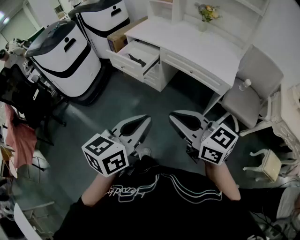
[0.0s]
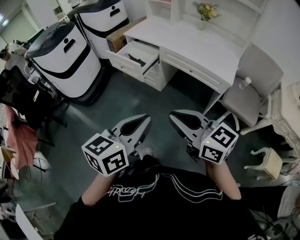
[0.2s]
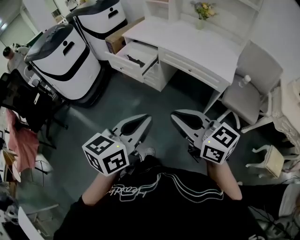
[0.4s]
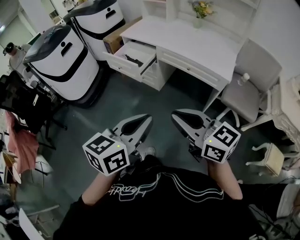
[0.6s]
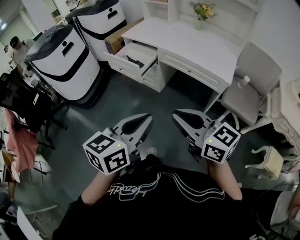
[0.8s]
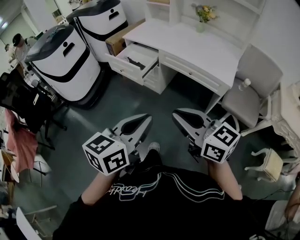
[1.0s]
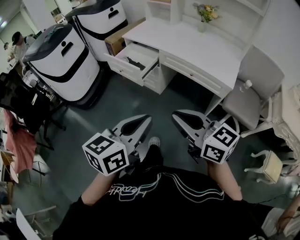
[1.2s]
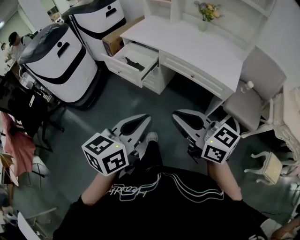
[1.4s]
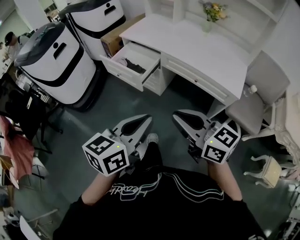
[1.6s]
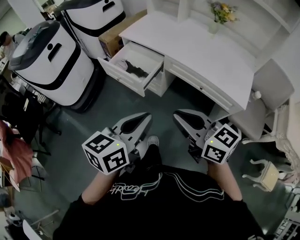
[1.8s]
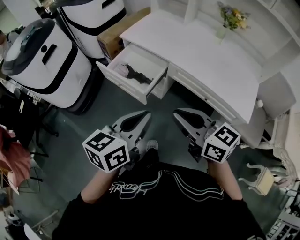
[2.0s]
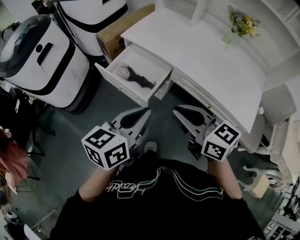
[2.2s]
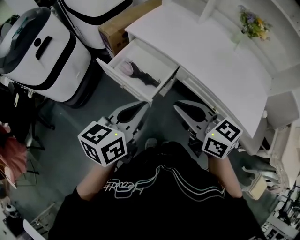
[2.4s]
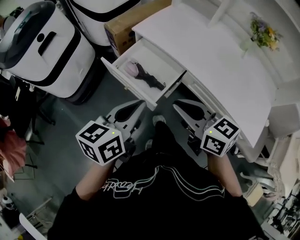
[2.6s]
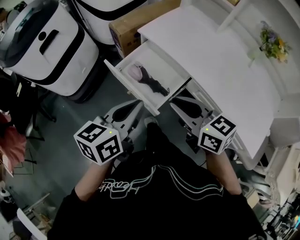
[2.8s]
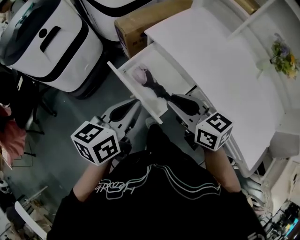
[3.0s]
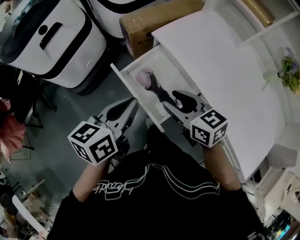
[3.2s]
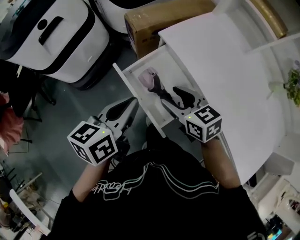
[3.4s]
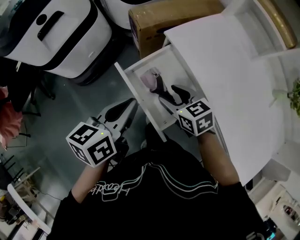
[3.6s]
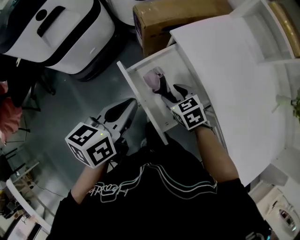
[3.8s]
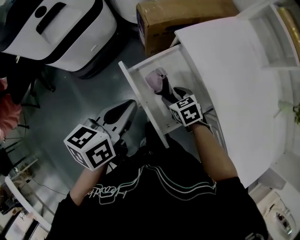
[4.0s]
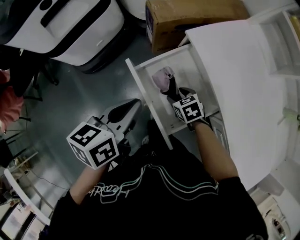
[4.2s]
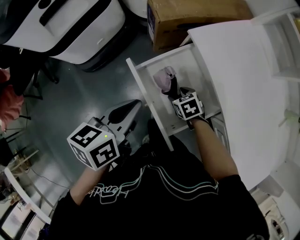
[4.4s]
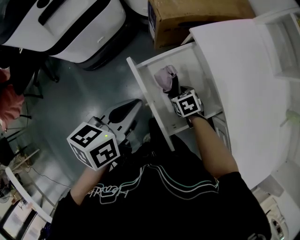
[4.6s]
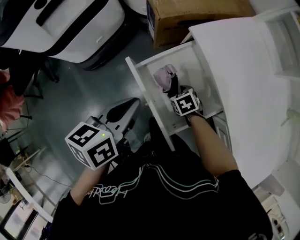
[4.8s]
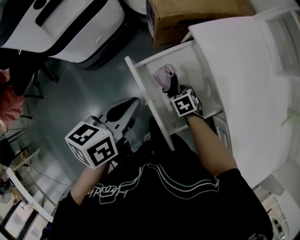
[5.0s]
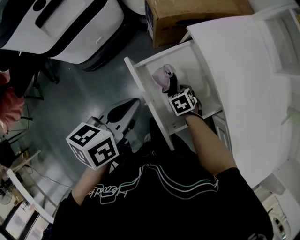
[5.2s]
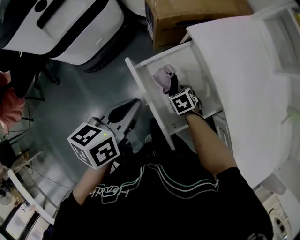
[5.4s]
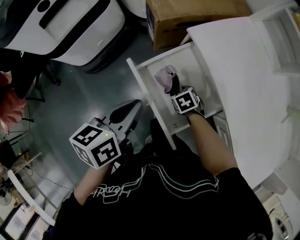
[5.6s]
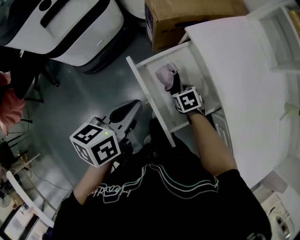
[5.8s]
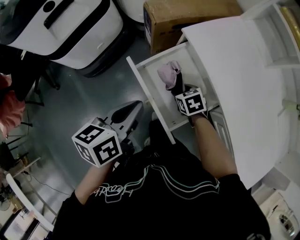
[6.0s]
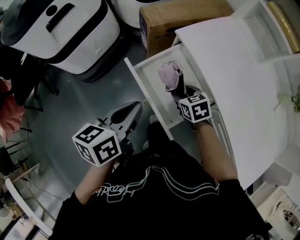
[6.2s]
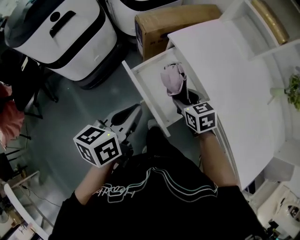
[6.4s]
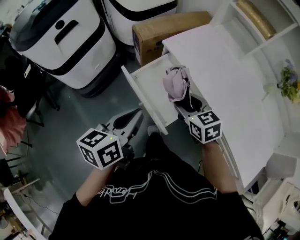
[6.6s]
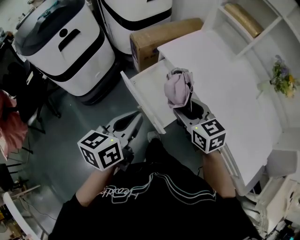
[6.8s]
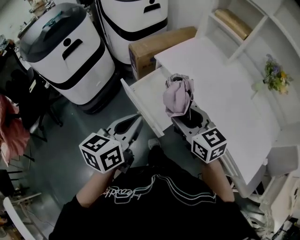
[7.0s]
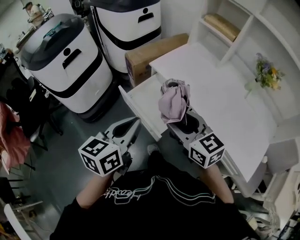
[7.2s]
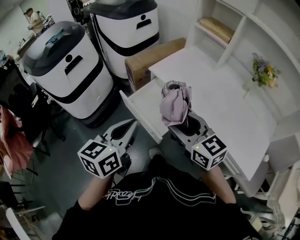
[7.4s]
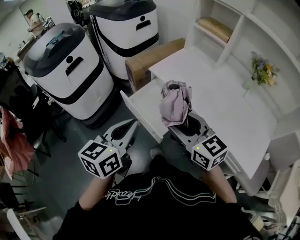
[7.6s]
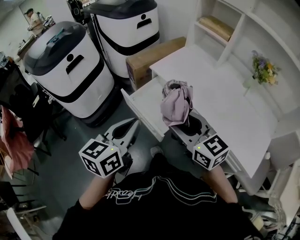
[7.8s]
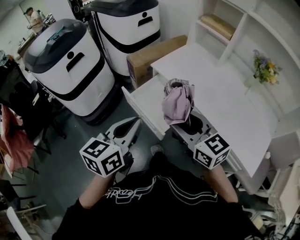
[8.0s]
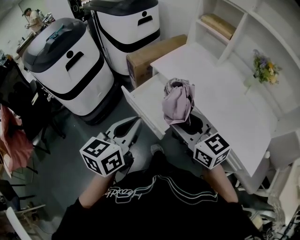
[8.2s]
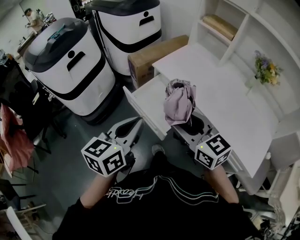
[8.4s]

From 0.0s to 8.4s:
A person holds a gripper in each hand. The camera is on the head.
From 0.0s to 1.4s: Both grippers travel together forward, some 10 cm.
From 1.4s to 2.8s: The pair of grippers is taken forward, some 50 cm.
From 2.8s to 4.2s: The right gripper heads downward and forward, covering roughly 40 cm, points its fingers some 40 degrees further downward, and opens up; the left gripper heads forward and downward, covering approximately 20 cm, and swivels some 20 degrees.
From 4.2s to 5.6s: The right gripper goes about 5 cm downward.
From 5.6s to 7.0s: The left gripper shifts about 25 cm backward and upward, and turns by approximately 20 degrees. The right gripper goes approximately 40 cm upward and backward, and angles its fingers upward, by roughly 50 degrees.
From 7.0s to 8.4s: The right gripper heads backward and upward, covering roughly 10 cm. The left gripper moves approximately 5 cm.

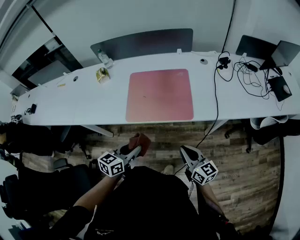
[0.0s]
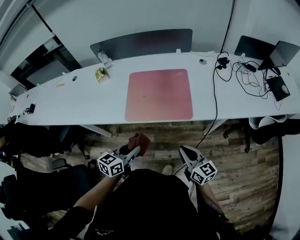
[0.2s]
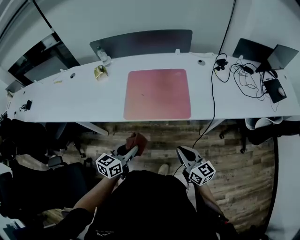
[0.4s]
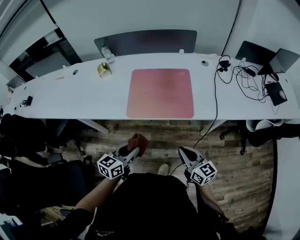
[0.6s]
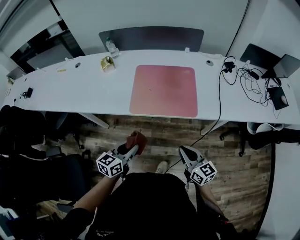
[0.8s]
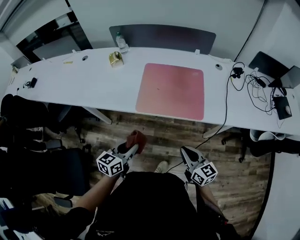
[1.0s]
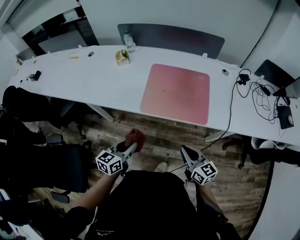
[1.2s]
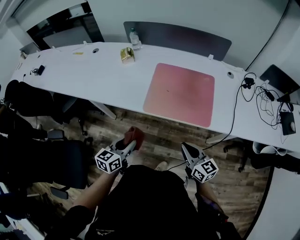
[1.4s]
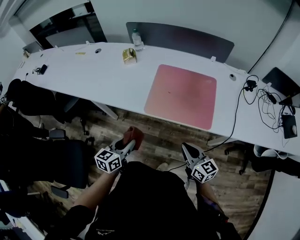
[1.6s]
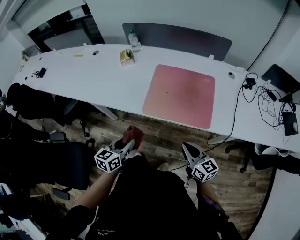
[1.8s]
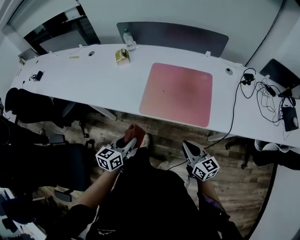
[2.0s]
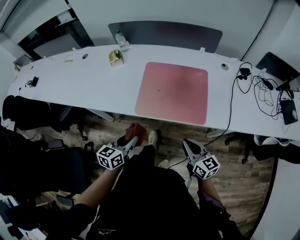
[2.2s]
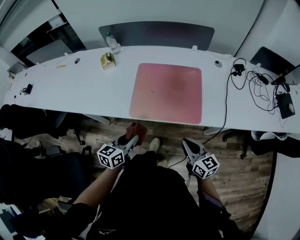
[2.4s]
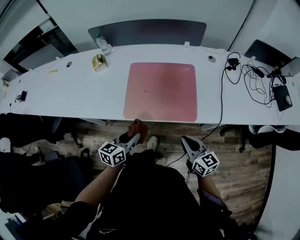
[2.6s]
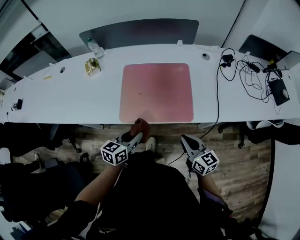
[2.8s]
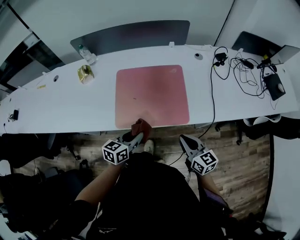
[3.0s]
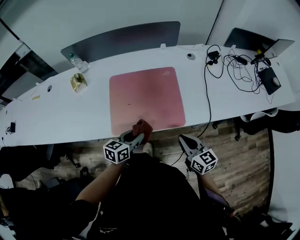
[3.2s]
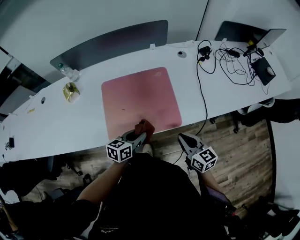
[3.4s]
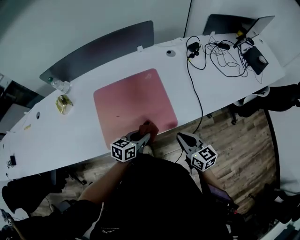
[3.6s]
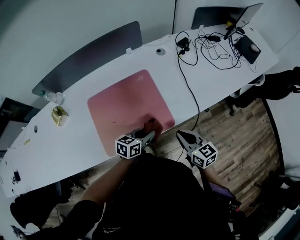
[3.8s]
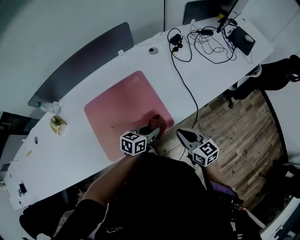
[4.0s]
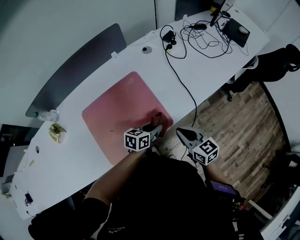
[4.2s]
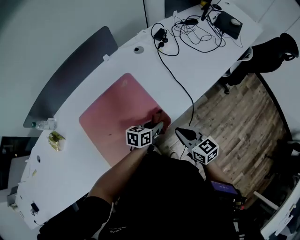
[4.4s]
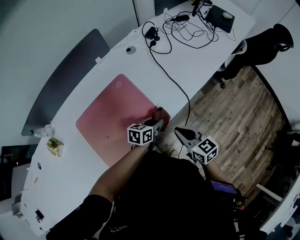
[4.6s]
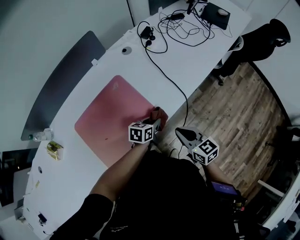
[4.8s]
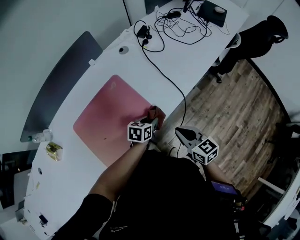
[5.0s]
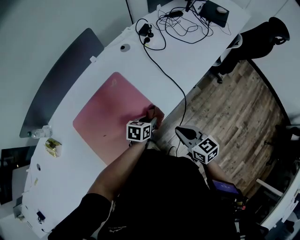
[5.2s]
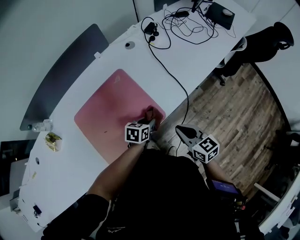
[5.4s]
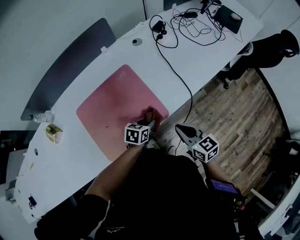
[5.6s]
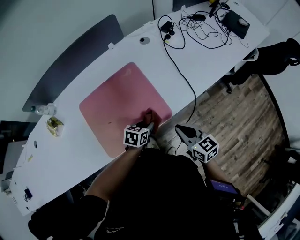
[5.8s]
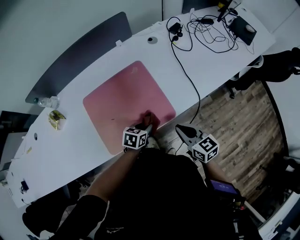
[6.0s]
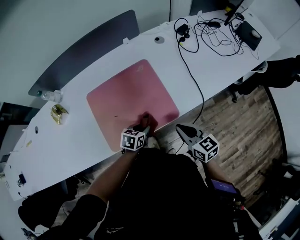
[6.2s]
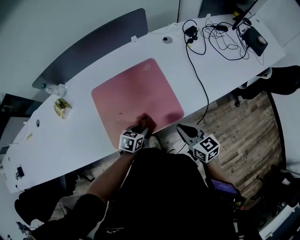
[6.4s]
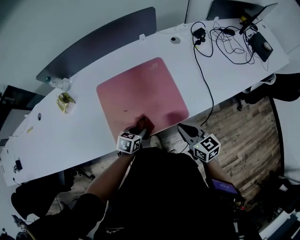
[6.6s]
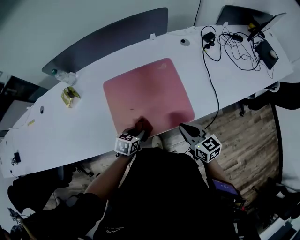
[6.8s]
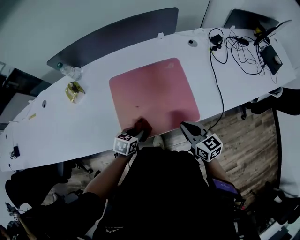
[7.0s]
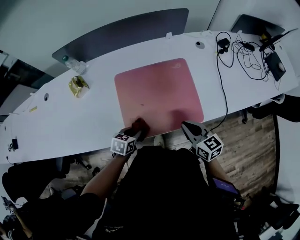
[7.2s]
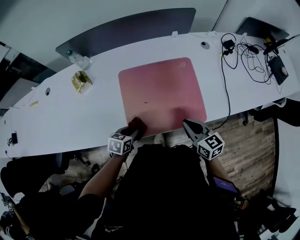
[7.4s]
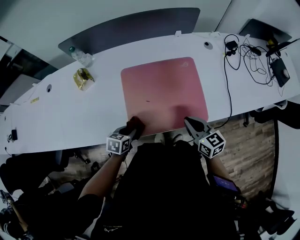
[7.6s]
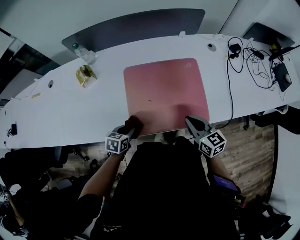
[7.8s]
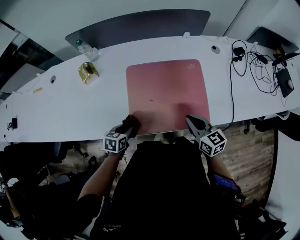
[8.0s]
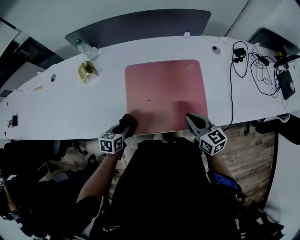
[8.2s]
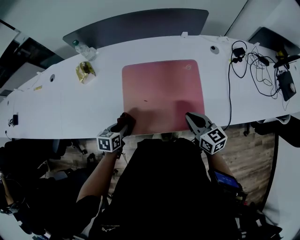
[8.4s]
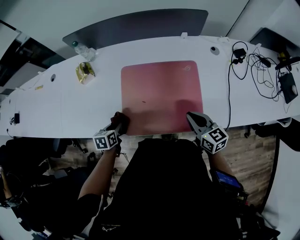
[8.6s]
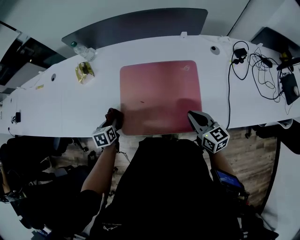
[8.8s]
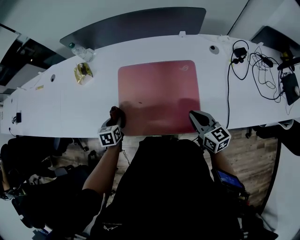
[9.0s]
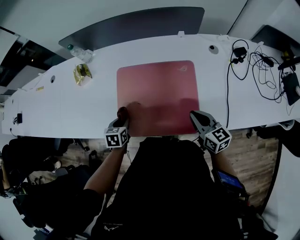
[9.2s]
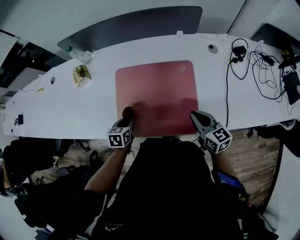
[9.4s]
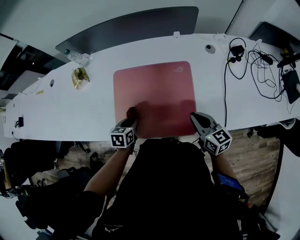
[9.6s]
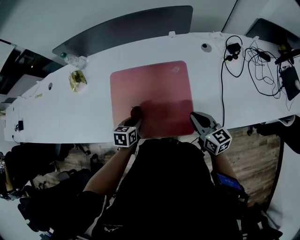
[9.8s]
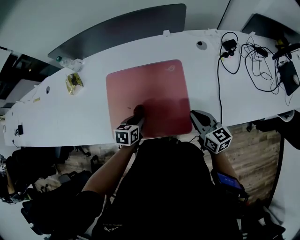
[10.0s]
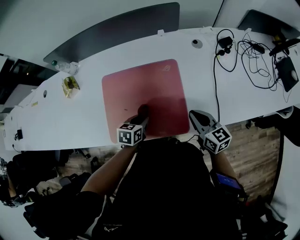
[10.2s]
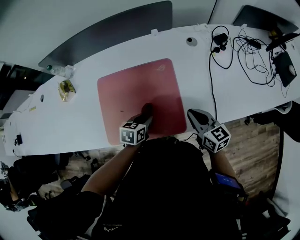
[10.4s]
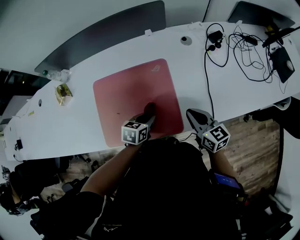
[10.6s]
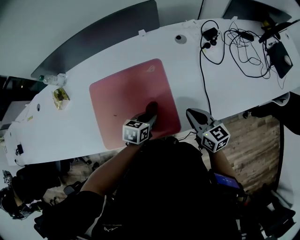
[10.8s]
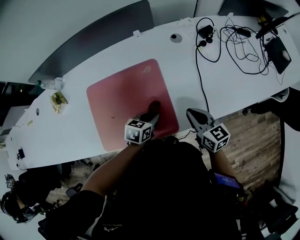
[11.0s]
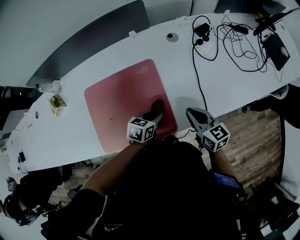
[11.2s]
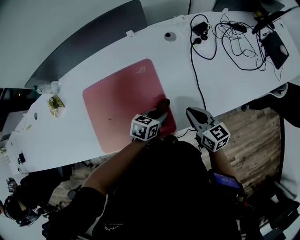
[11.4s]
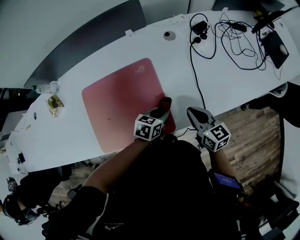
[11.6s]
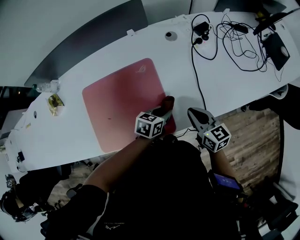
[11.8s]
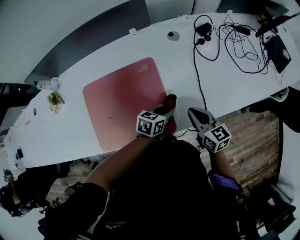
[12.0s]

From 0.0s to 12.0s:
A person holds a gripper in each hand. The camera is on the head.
From 0.0s to 1.6s: Both grippers travel together to the left, about 10 cm. The left gripper changes its angle by roughly 20 degrees.
From 1.6s to 3.0s: The right gripper travels to the right and forward by about 10 cm; the left gripper heads to the right and forward, covering about 20 cm, and changes its angle by about 20 degrees.
From 3.0s to 4.4s: The right gripper moves roughly 10 cm, and swivels approximately 20 degrees, while the left gripper moves about 25 cm, and turns by approximately 40 degrees.
From 4.4s to 6.0s: The left gripper travels to the left and backward by about 10 cm.
From 6.0s to 7.6s: The right gripper moves to the left, about 15 cm. The left gripper is displaced to the left by roughly 25 cm, and turns by roughly 20 degrees.
From 7.6s to 9.0s: The left gripper moves about 5 cm, and rotates about 30 degrees. The right gripper moves some 10 cm.
From 9.0s to 10.4s: The right gripper changes place by approximately 10 cm. The left gripper ends up approximately 25 cm from where it was, and changes its angle by approximately 30 degrees.
From 10.4s to 12.0s: The right gripper moves to the right, roughly 5 cm. Meanwhile the left gripper travels to the right by about 15 cm.

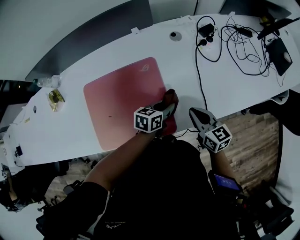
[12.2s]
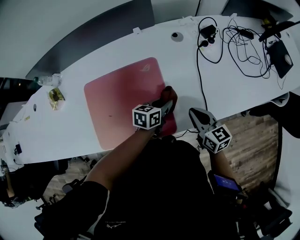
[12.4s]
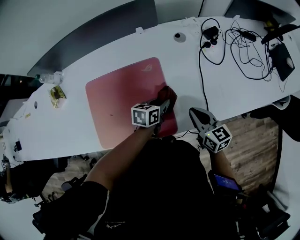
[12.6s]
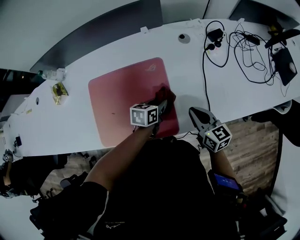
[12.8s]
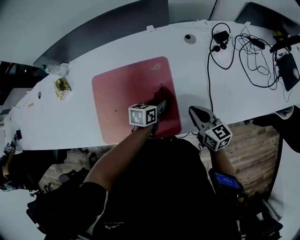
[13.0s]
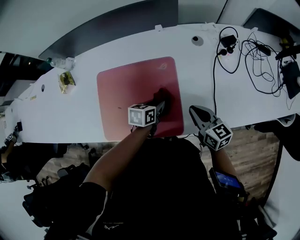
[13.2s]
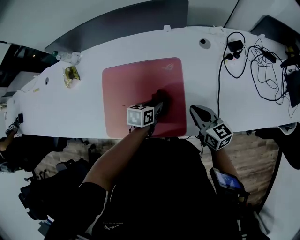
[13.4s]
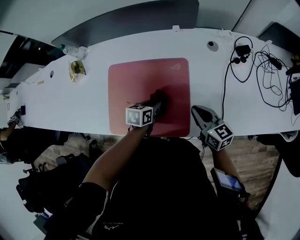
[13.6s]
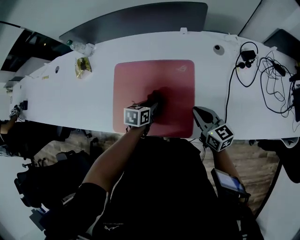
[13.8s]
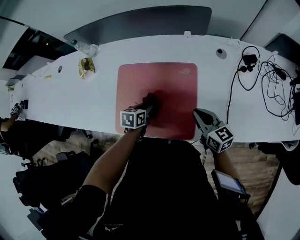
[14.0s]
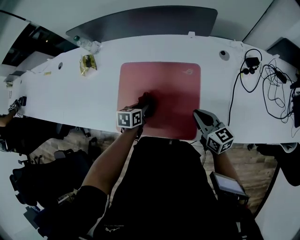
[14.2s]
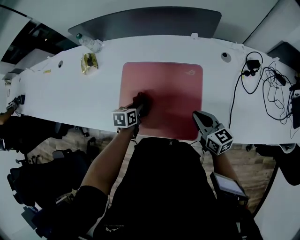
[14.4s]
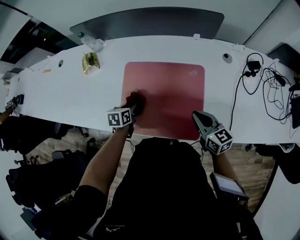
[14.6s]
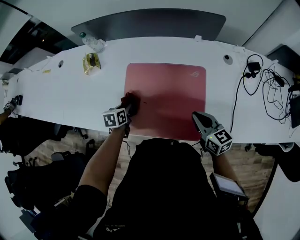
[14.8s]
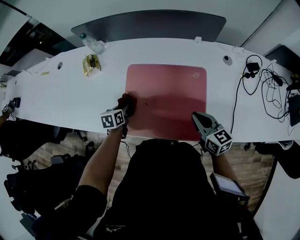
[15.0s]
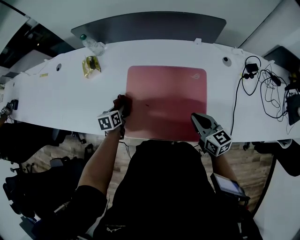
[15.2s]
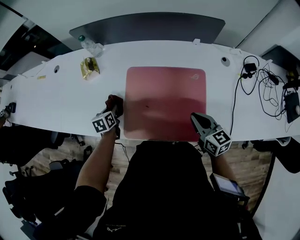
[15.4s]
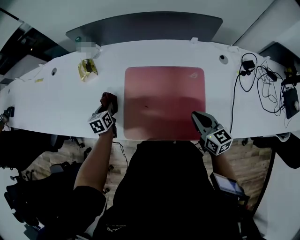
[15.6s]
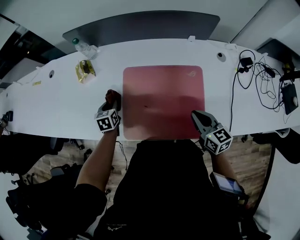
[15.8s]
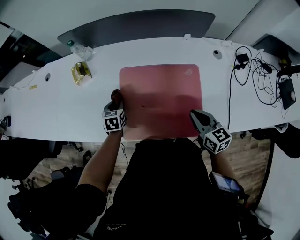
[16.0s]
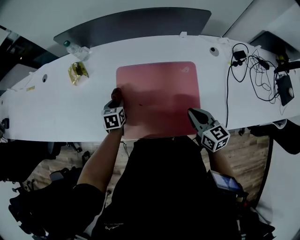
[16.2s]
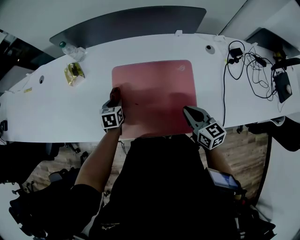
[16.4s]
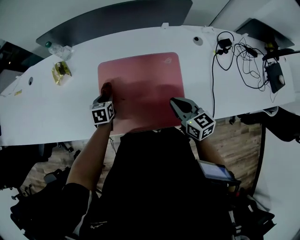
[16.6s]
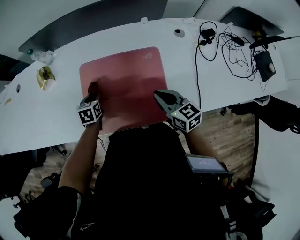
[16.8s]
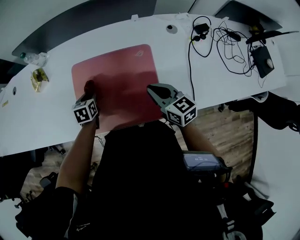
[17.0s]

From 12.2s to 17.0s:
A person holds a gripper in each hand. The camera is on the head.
From 12.2s to 13.8s: The right gripper heads to the left, covering about 10 cm. Meanwhile the left gripper moves to the left, about 20 cm, and rotates some 30 degrees.
From 13.8s to 15.4s: The left gripper shifts roughly 30 cm to the left, and turns by approximately 30 degrees; the right gripper heads to the left, covering about 10 cm.
From 15.4s to 17.0s: The left gripper travels to the right by some 15 cm, and rotates roughly 20 degrees.
